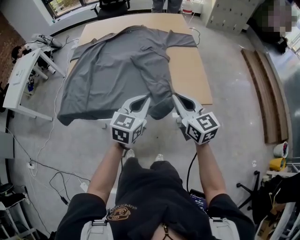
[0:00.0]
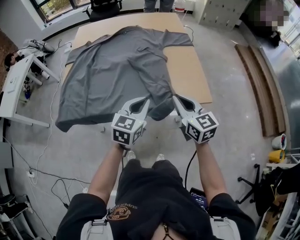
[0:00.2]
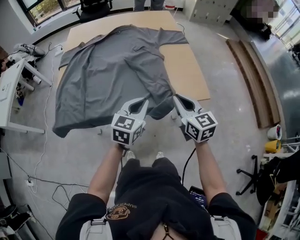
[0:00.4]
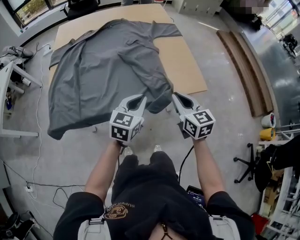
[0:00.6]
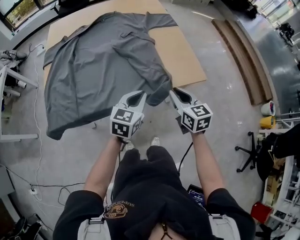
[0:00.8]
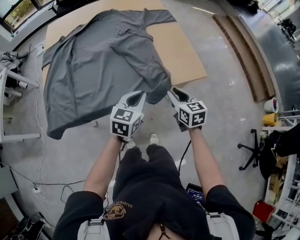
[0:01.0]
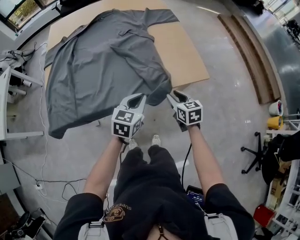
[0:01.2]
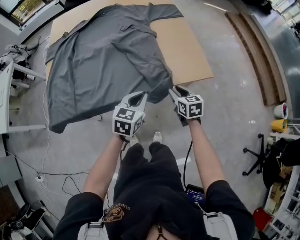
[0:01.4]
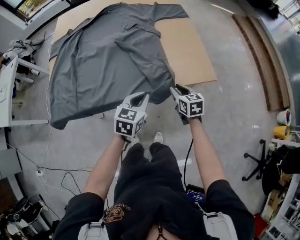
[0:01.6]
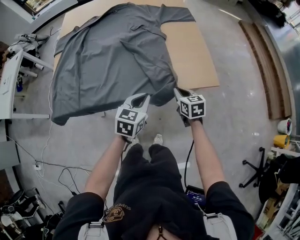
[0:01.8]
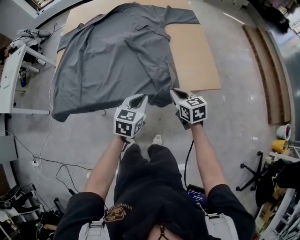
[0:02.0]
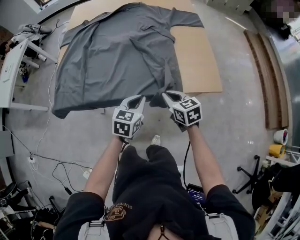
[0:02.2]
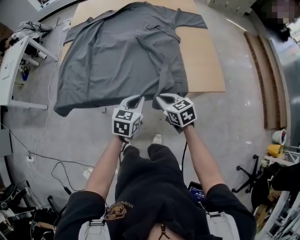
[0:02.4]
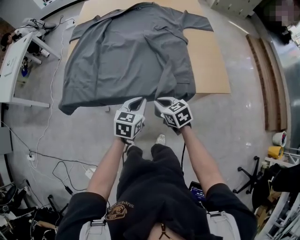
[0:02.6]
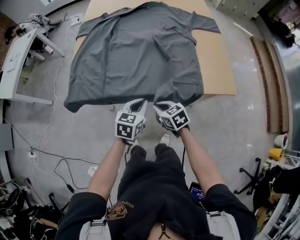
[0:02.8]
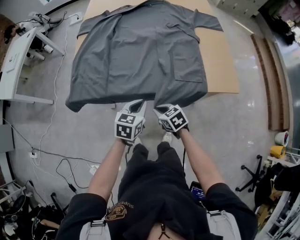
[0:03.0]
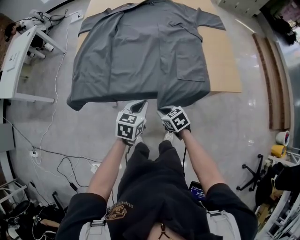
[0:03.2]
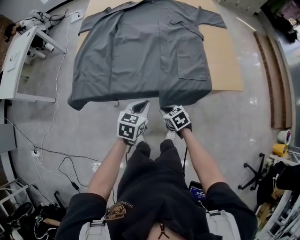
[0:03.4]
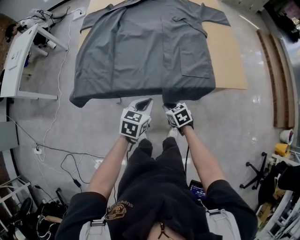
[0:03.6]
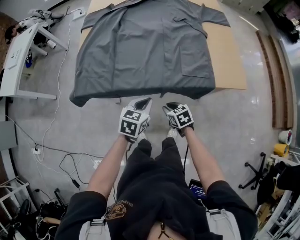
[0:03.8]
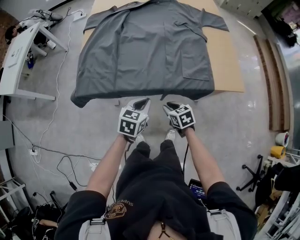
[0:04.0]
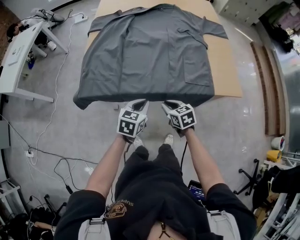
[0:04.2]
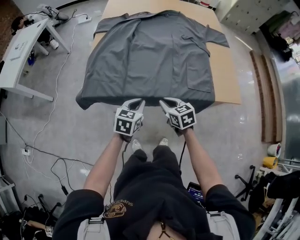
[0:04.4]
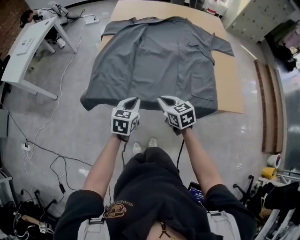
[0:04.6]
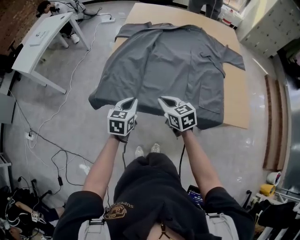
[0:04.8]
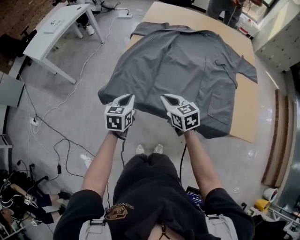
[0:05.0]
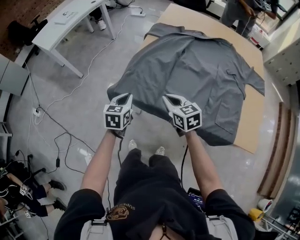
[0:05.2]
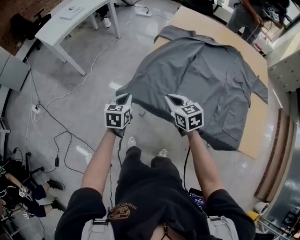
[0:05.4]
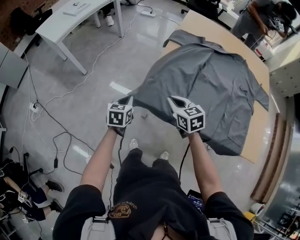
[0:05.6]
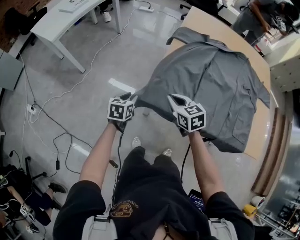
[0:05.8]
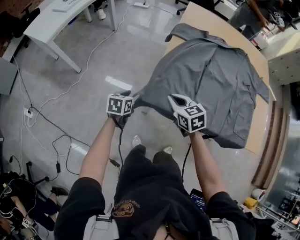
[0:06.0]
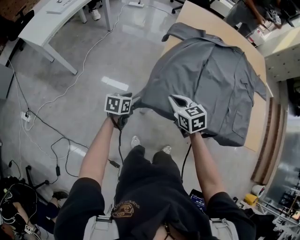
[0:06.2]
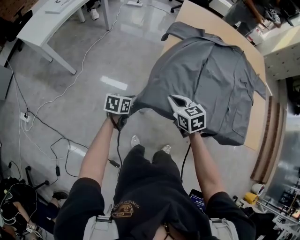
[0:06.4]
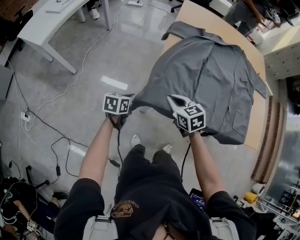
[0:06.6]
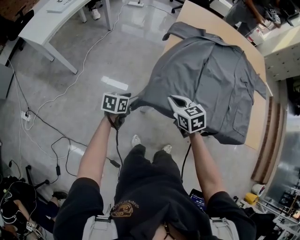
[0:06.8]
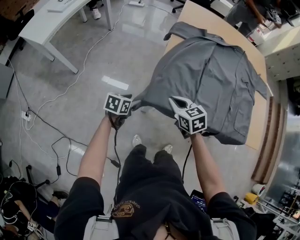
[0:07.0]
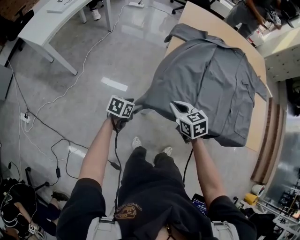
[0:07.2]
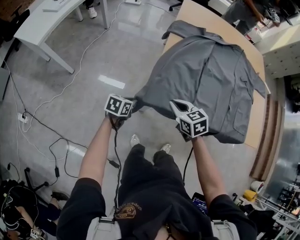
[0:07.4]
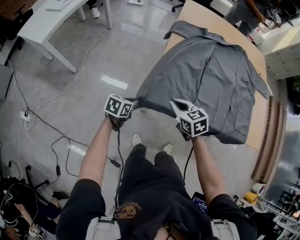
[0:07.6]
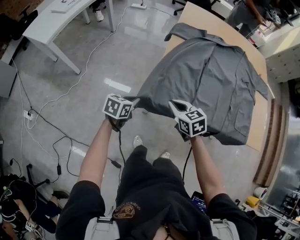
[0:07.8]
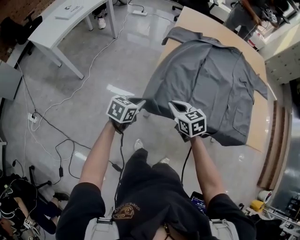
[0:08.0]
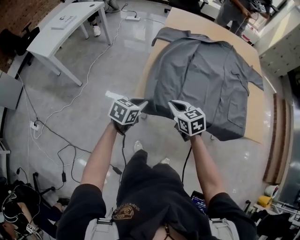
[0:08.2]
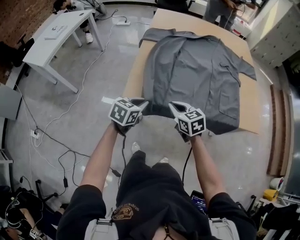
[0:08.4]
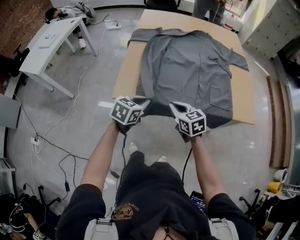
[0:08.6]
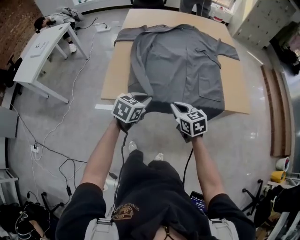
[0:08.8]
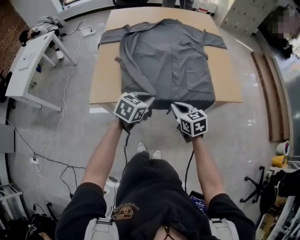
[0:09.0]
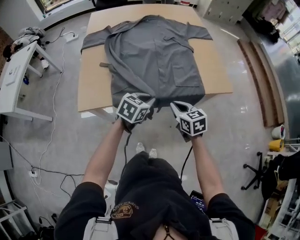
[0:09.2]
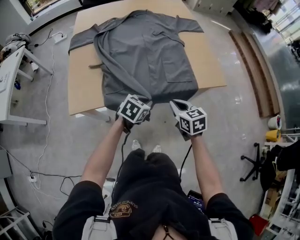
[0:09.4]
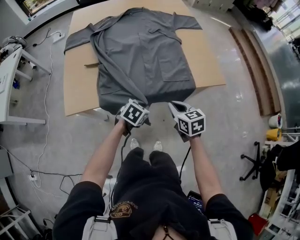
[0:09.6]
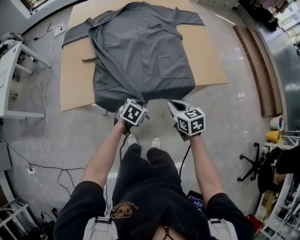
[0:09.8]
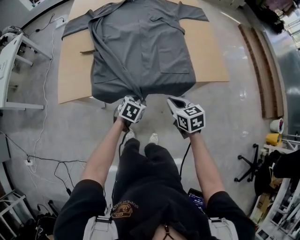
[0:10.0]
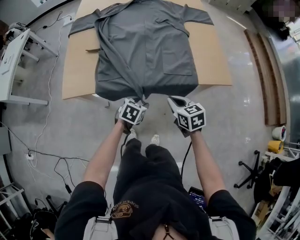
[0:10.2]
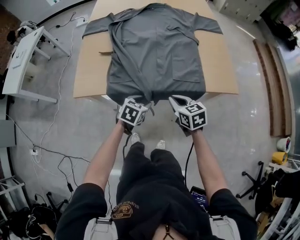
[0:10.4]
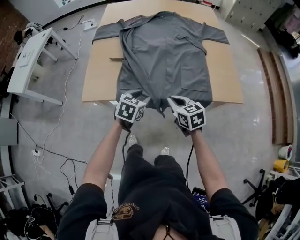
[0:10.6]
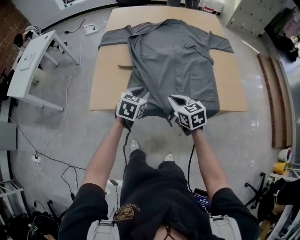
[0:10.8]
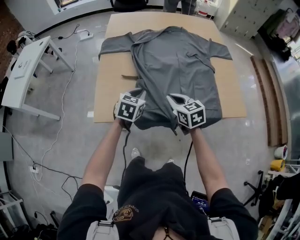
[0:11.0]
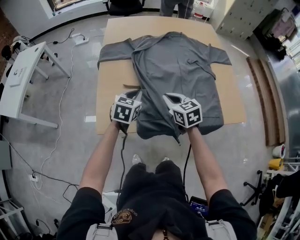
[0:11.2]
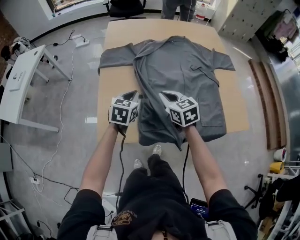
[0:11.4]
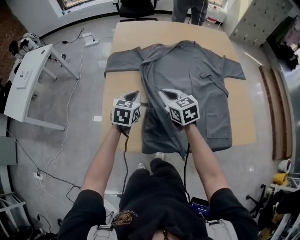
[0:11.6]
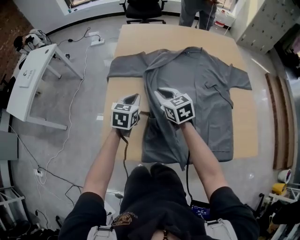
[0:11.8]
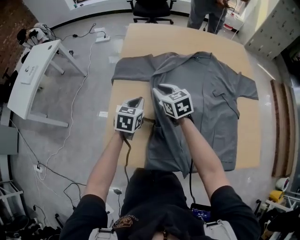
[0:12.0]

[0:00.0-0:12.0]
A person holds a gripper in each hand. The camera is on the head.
0:00.0 to 0:01.6: The right gripper travels downward by about 25 cm, turns by some 30 degrees, and opens, while the left gripper heads downward, covering roughly 15 cm.
0:01.6 to 0:03.0: Both grippers travel together to the left, some 25 cm. The right gripper changes its angle by some 40 degrees, and closes its fingers.
0:03.0 to 0:04.4: The right gripper shifts about 10 cm upward and forward, while the left gripper travels to the left by some 10 cm.
0:04.4 to 0:06.0: The right gripper changes place by some 35 cm, while the left gripper shifts by roughly 40 cm, swivels approximately 30 degrees, and opens up.
0:06.0 to 0:07.6: The left gripper closes up.
0:07.6 to 0:09.0: The right gripper is displaced to the right by about 35 cm, and changes its angle by roughly 20 degrees; the left gripper is displaced to the right and upward by about 40 cm, and swivels about 30 degrees.
0:09.0 to 0:10.4: The right gripper heads to the right, covering roughly 10 cm, while the left gripper travels downward and to the right by roughly 15 cm, and opens.
0:10.4 to 0:12.0: Both grippers are carried forward and to the left, approximately 50 cm. The left gripper rotates approximately 20 degrees, and closes its fingers.

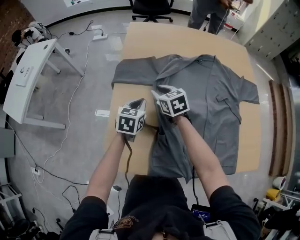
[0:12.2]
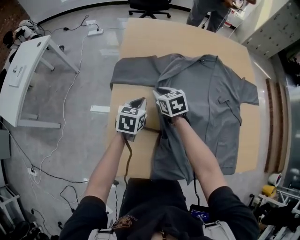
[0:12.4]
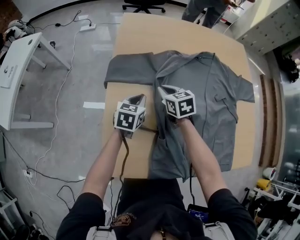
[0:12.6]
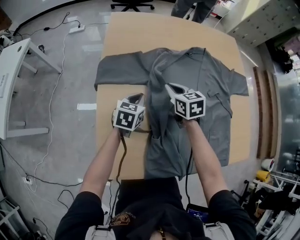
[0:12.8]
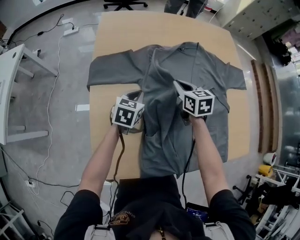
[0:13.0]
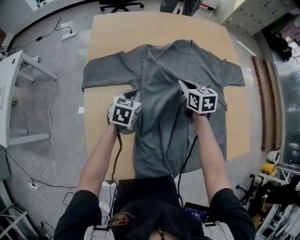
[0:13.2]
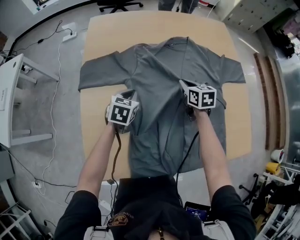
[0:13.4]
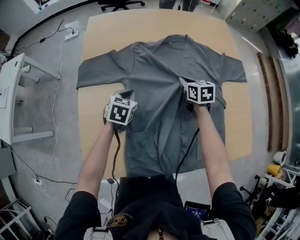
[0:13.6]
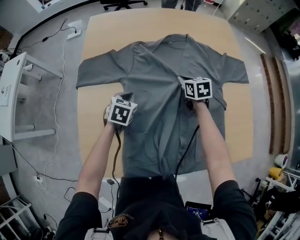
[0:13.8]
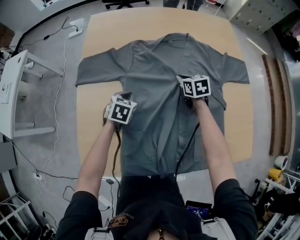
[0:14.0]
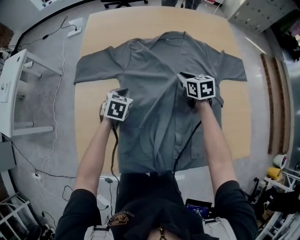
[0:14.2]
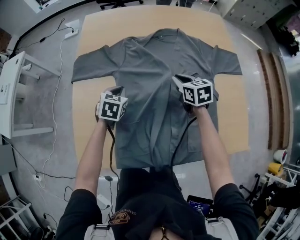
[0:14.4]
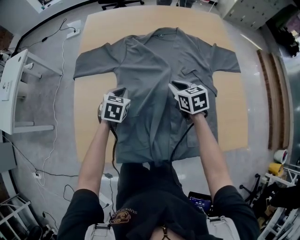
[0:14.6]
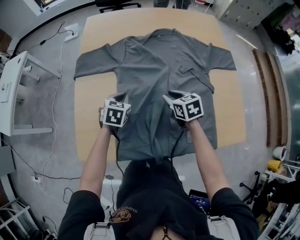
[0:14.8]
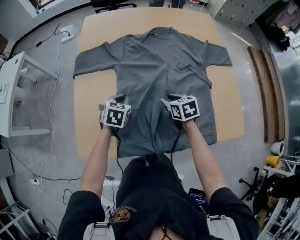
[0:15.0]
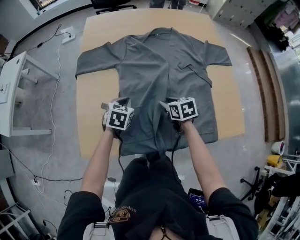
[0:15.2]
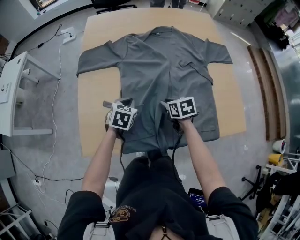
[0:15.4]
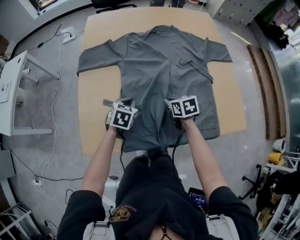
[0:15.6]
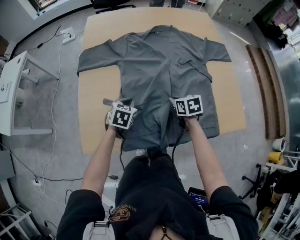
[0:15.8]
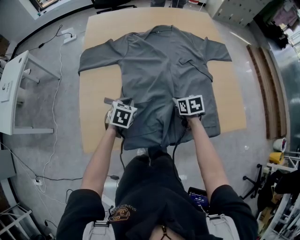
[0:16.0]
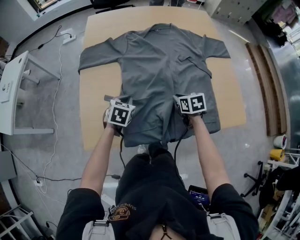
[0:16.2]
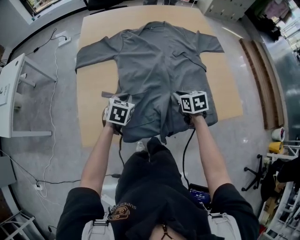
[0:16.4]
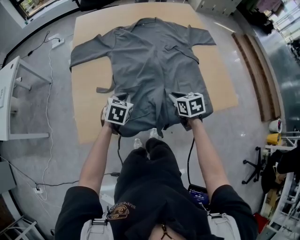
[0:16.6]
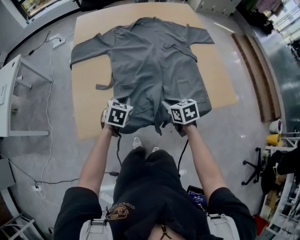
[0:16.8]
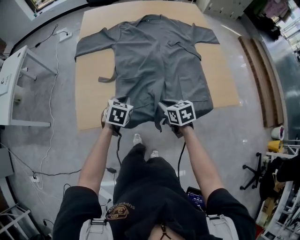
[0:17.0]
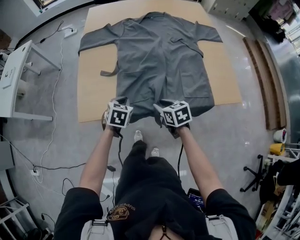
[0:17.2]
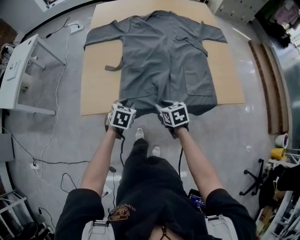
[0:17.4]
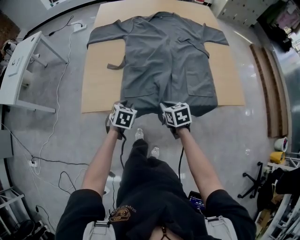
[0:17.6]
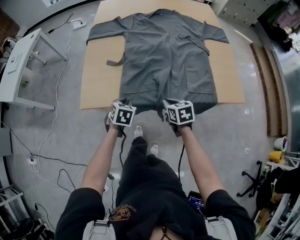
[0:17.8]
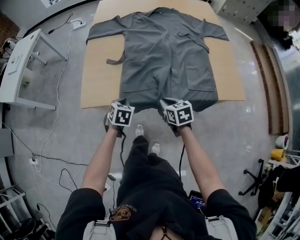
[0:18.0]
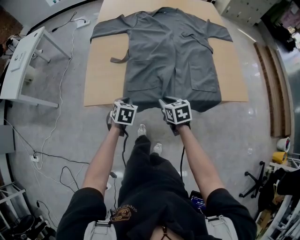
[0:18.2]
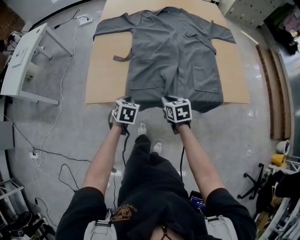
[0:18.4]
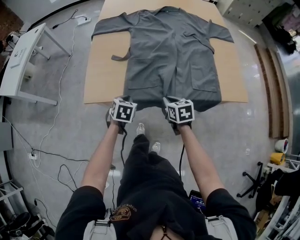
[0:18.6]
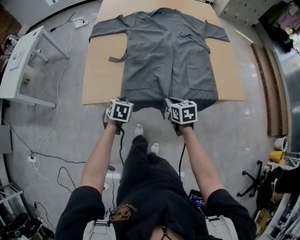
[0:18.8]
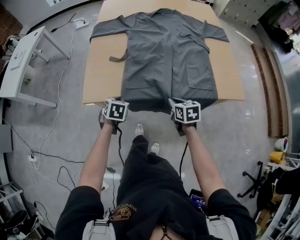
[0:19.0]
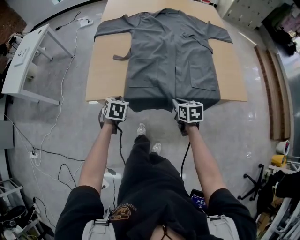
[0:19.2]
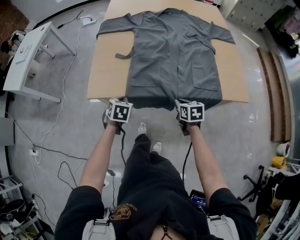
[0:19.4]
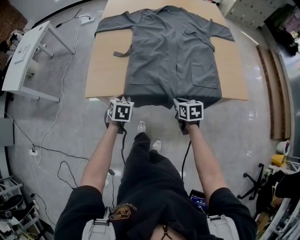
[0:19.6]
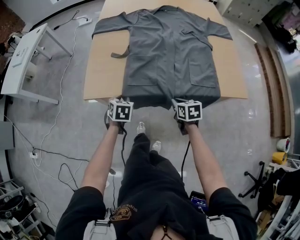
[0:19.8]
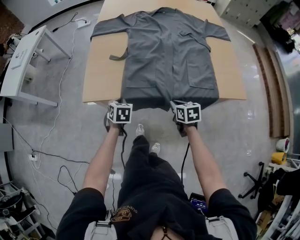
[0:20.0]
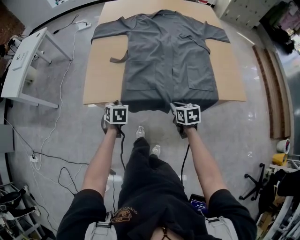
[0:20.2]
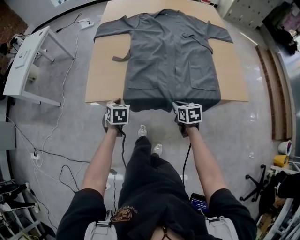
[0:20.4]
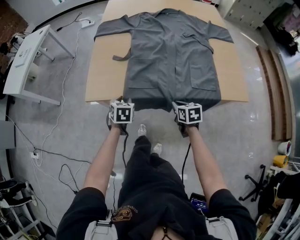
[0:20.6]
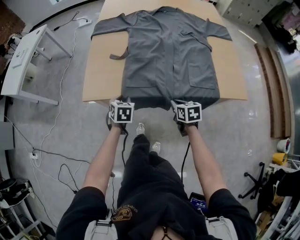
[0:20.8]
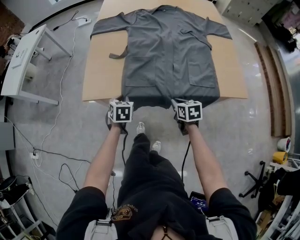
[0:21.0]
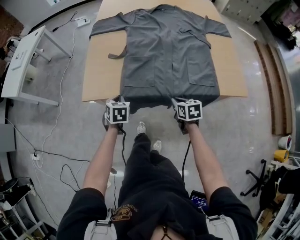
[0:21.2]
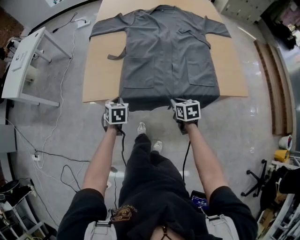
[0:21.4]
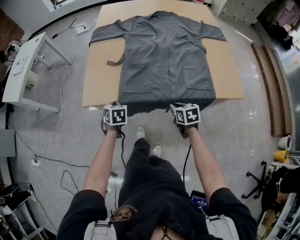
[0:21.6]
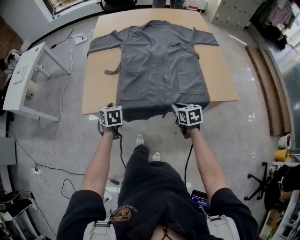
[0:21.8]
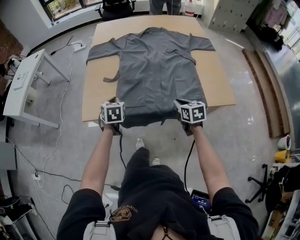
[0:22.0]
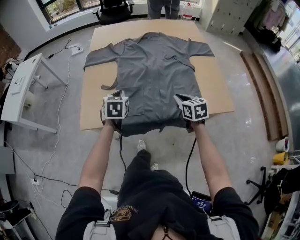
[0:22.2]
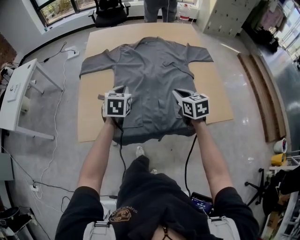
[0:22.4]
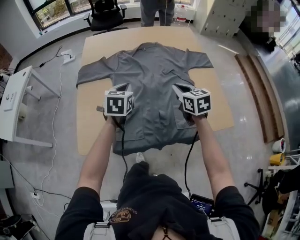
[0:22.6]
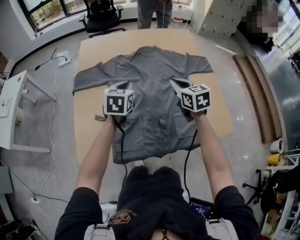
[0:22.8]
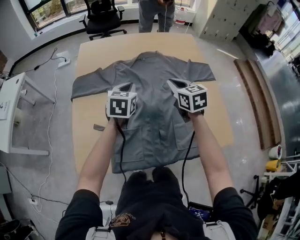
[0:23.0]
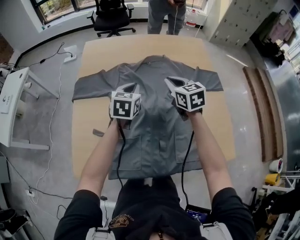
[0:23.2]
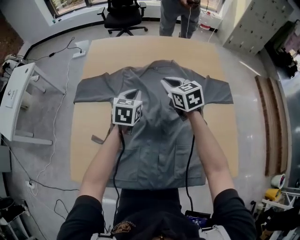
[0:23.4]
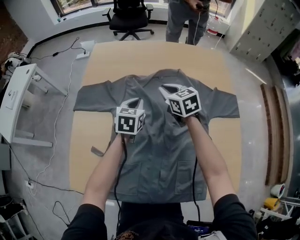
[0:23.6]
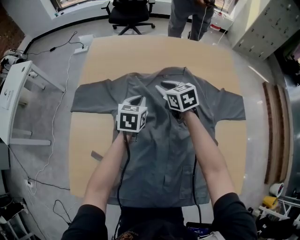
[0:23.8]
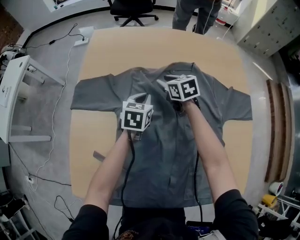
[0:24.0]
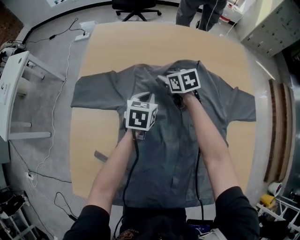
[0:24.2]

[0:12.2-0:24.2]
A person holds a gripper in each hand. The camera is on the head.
0:12.2 to 0:13.8: The right gripper goes about 30 cm to the right, rotates roughly 20 degrees, and closes. Meanwhile the left gripper is displaced to the right and downward by approximately 15 cm, and changes its angle by approximately 20 degrees.
0:13.8 to 0:15.2: The right gripper is displaced backward by approximately 20 cm, and opens its fingers, while the left gripper moves backward, approximately 10 cm.
0:15.2 to 0:16.6: Both grippers travel together backward, some 10 cm. The right gripper closes.
0:16.6 to 0:18.2: The two grippers go about 15 cm backward, to the left and downward. The left gripper opens and closes again.
0:18.2 to 0:19.8: The left gripper opens up; the right gripper shifts roughly 5 cm to the right.
0:19.8 to 0:21.2: The left gripper closes its fingers.
0:21.2 to 0:22.6: Both grippers move forward, upward and to the right, about 35 cm. The left gripper changes its angle by some 30 degrees; the right gripper swivels approximately 20 degrees.
0:22.6 to 0:24.2: The grippers both shift forward and downward by roughly 40 cm. The right gripper changes its angle by about 20 degrees, and opens up.
